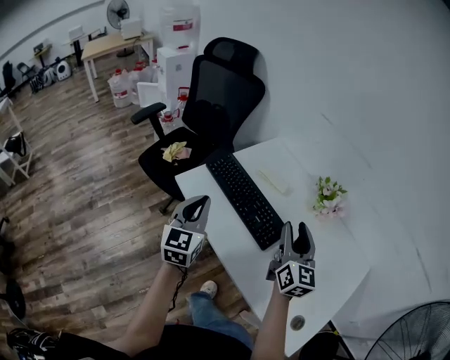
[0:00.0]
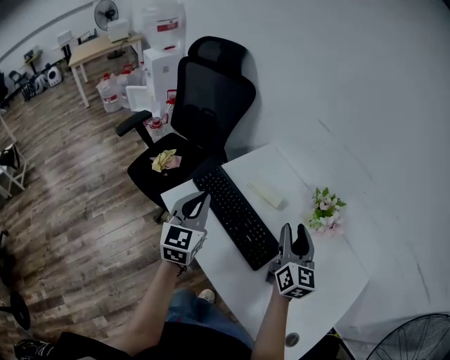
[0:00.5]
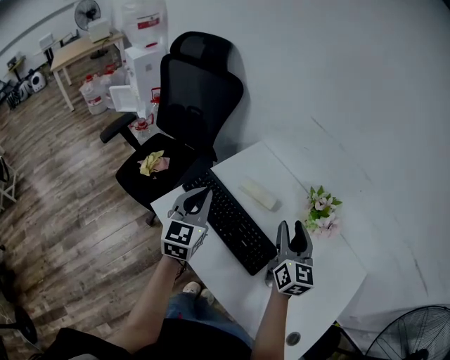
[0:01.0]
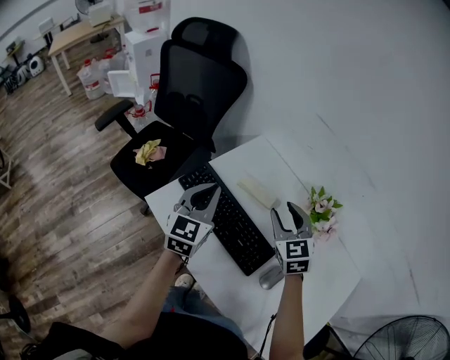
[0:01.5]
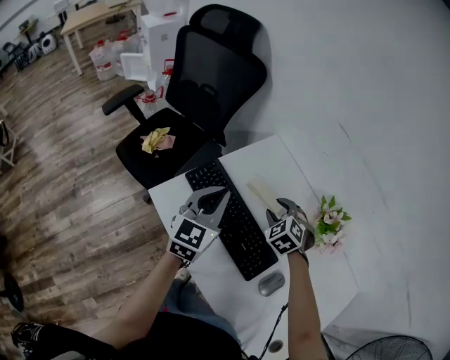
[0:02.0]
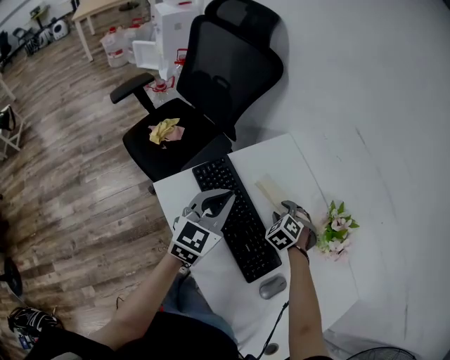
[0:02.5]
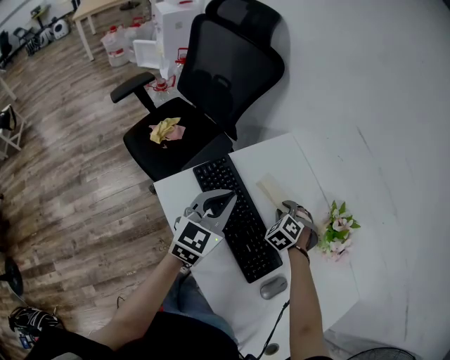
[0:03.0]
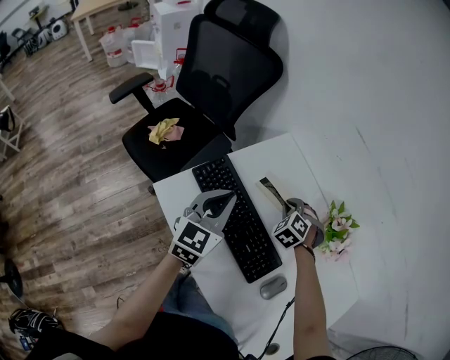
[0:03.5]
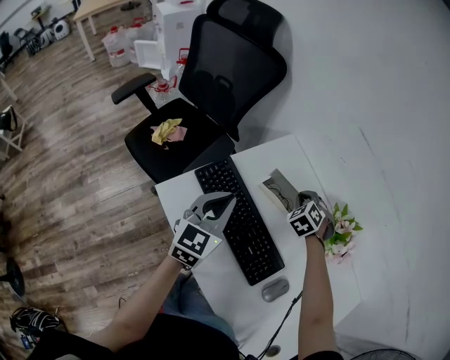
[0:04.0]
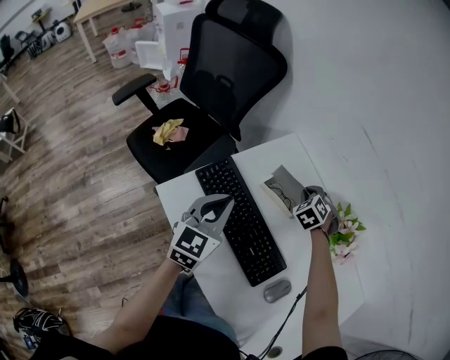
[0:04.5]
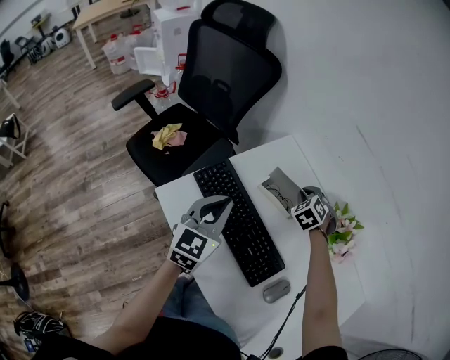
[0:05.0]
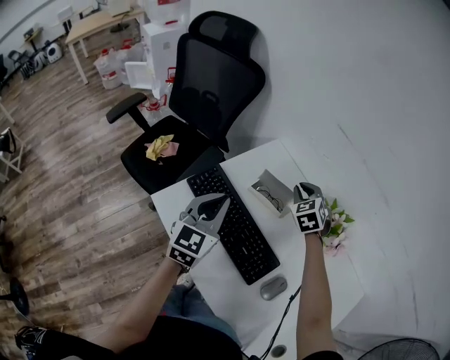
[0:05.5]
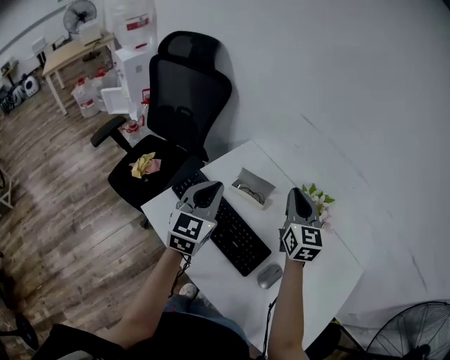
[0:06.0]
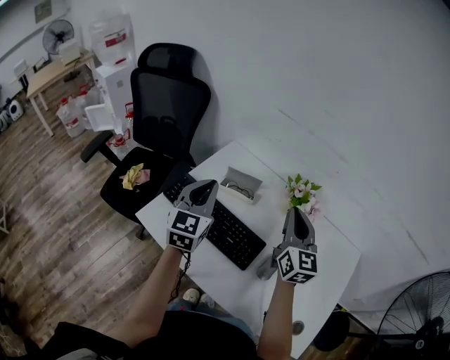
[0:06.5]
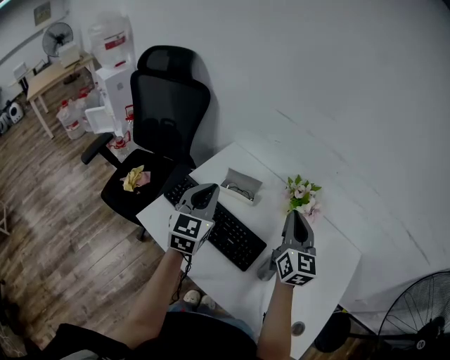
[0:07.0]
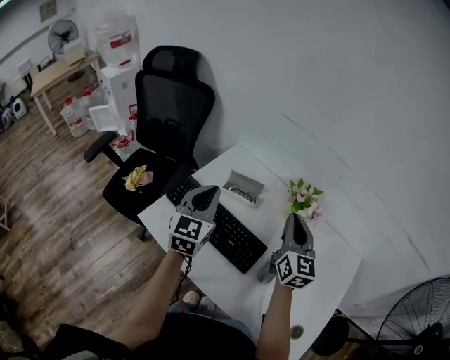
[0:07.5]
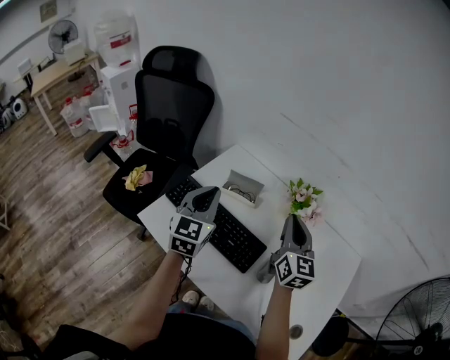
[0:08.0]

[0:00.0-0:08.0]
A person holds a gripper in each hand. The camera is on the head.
0:00.0 to 0:02.0: The left gripper shifts about 20 cm forward; the right gripper goes some 30 cm forward and downward, and points its fingers roughly 50 degrees further downward.
0:02.0 to 0:04.0: The right gripper moves forward, about 10 cm, and closes up.
0:04.0 to 0:06.0: The left gripper moves upward, about 10 cm. Meanwhile the right gripper goes roughly 25 cm upward and backward, and tips its fingers upward by about 50 degrees.
0:06.0 to 0:08.0: The right gripper shifts roughly 10 cm backward and to the right.

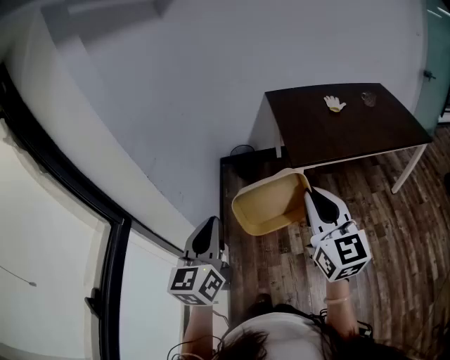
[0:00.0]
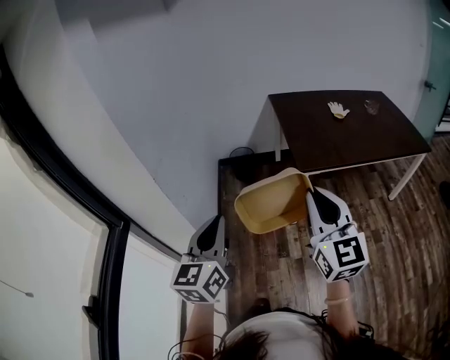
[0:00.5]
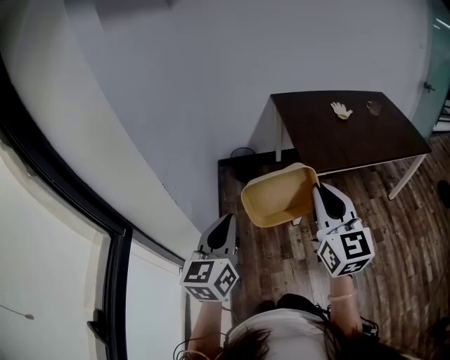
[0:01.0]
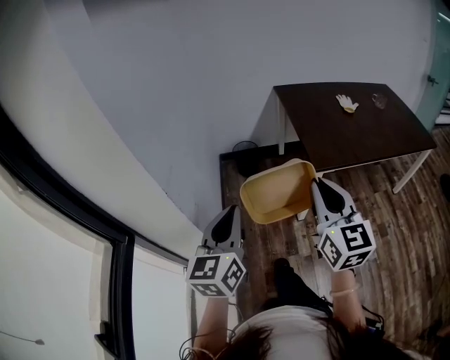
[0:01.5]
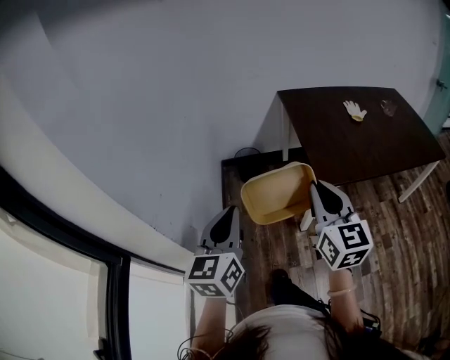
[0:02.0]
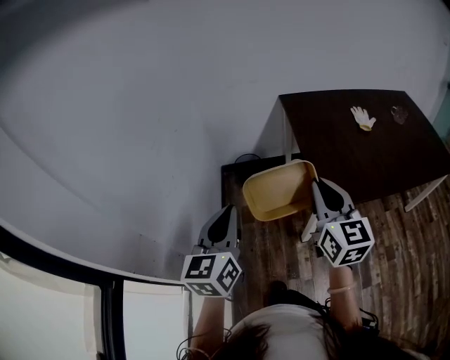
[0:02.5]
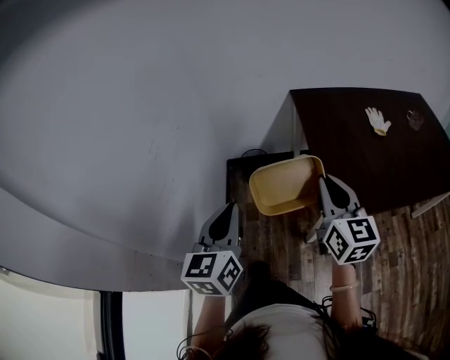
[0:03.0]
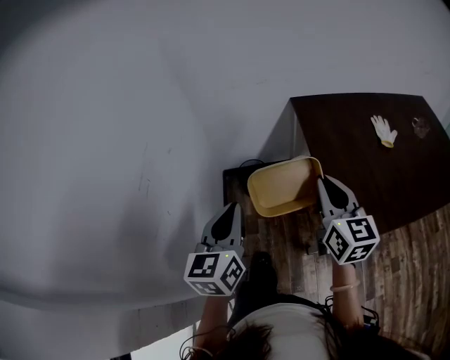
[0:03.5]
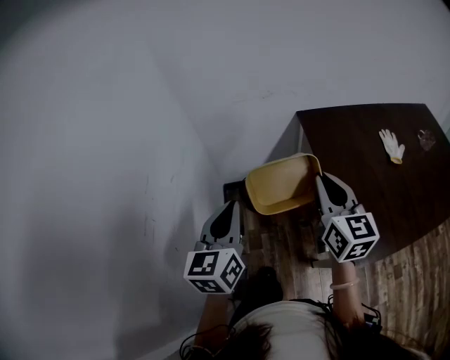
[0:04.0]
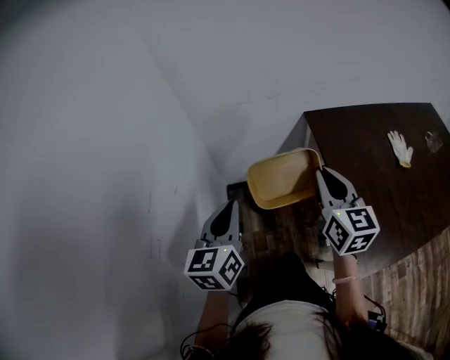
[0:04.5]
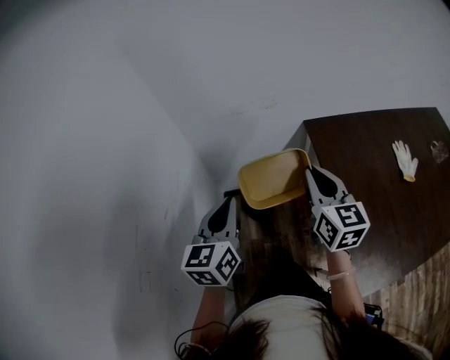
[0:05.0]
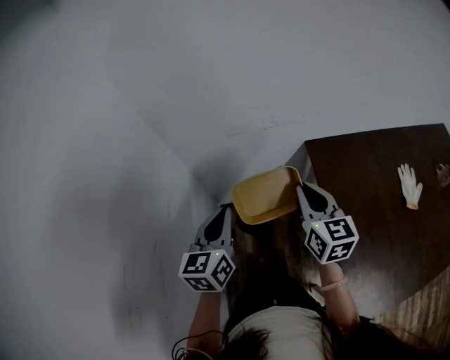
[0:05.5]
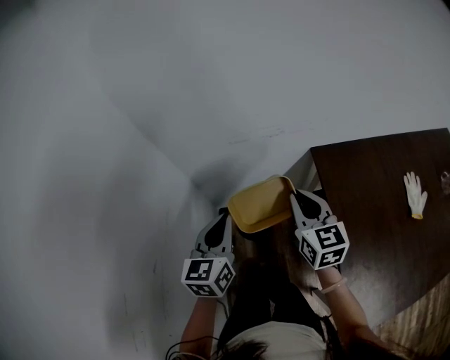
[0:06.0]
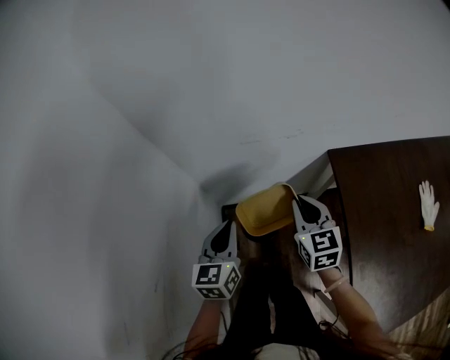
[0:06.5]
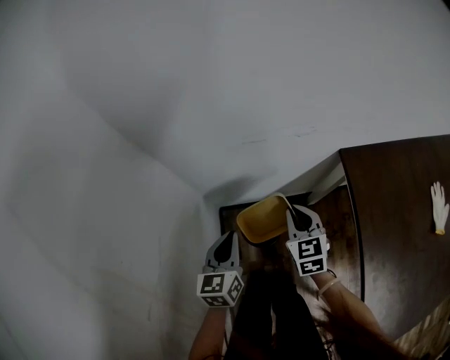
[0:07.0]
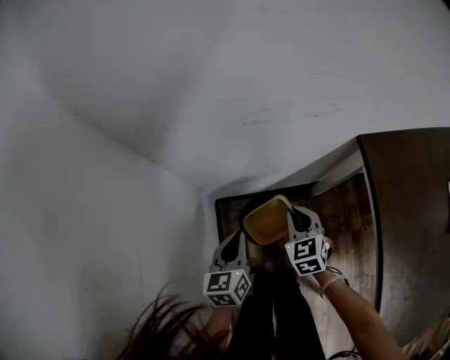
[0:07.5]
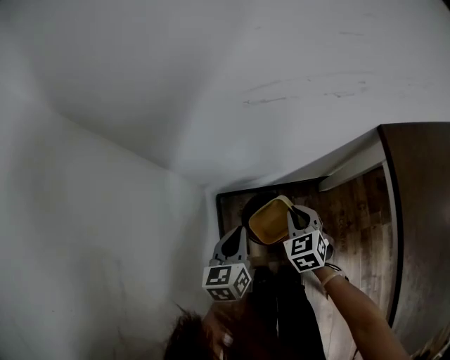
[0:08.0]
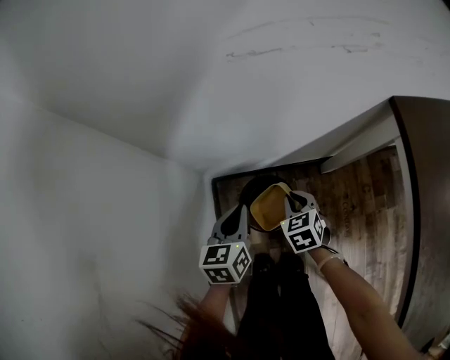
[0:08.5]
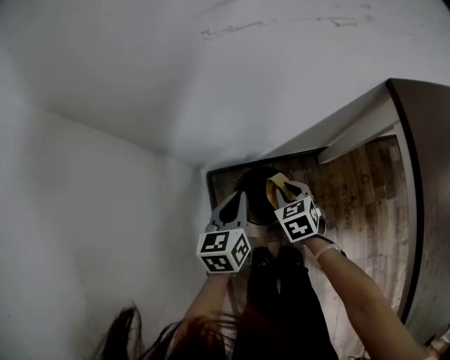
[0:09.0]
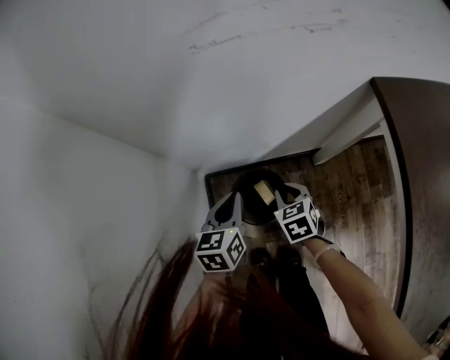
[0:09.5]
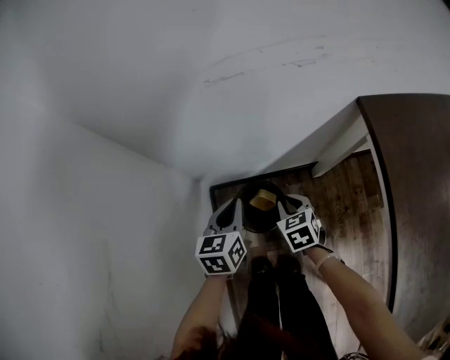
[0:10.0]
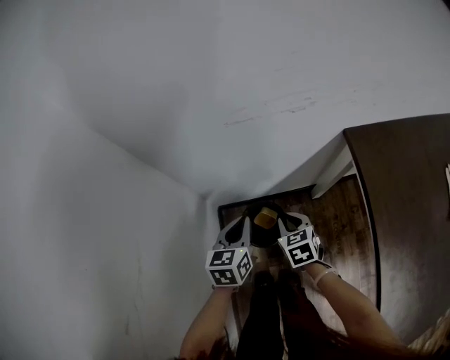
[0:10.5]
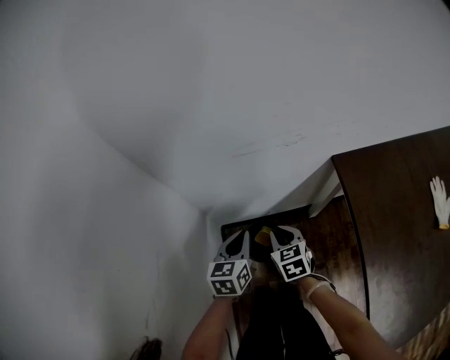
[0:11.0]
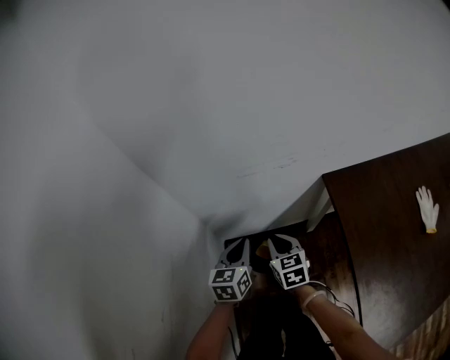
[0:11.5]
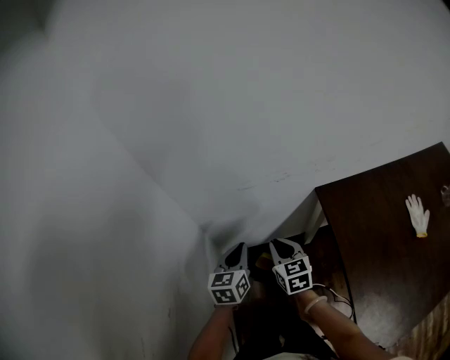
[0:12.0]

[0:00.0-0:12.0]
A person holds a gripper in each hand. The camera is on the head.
0:00.0 to 0:02.0: The right gripper travels forward and to the left by roughly 25 cm. Meanwhile the left gripper moves forward, roughly 25 cm.
0:02.0 to 0:04.0: The pair of grippers is taken forward, about 50 cm.
0:04.0 to 0:06.0: Both grippers travel together forward, about 35 cm.
0:06.0 to 0:08.0: Both grippers travel together downward, about 40 cm. The right gripper tilts its fingers about 30 degrees downward.
0:08.0 to 0:10.0: The right gripper reaches about 10 cm downward, then returns.
0:10.0 to 0:12.0: Both grippers travel together upward, about 35 cm. The right gripper turns by roughly 30 degrees.

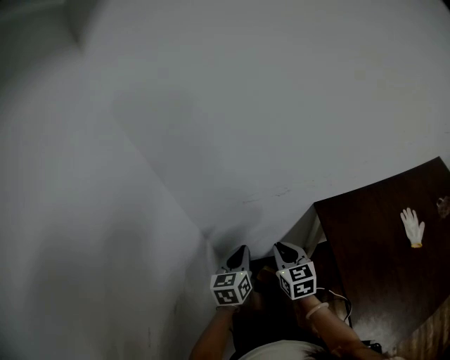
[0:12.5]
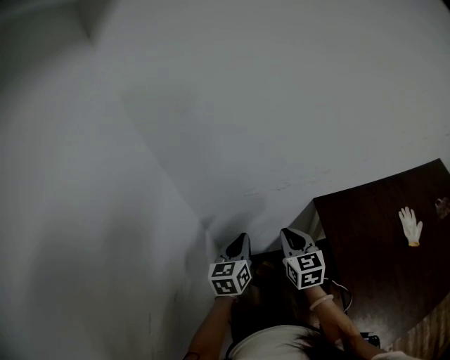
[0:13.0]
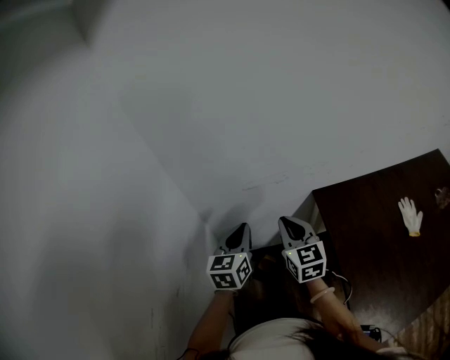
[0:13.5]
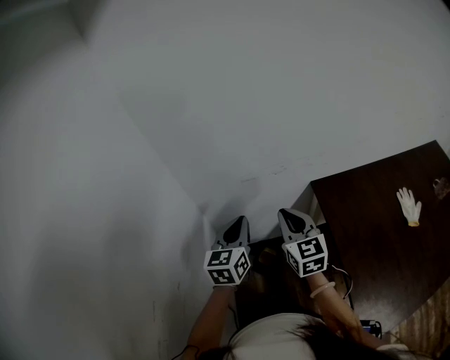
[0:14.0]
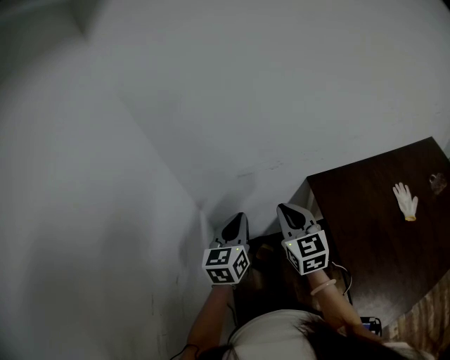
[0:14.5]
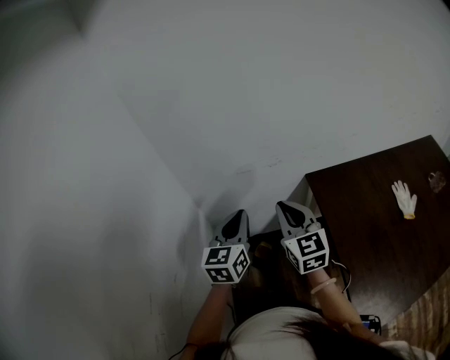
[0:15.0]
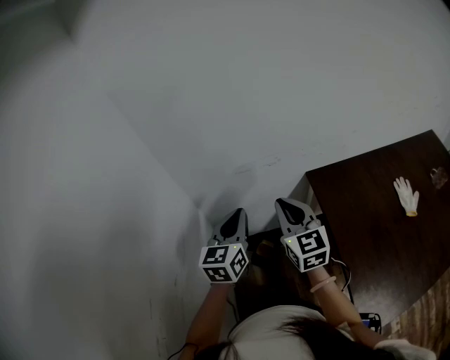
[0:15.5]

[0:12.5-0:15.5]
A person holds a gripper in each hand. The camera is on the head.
0:12.5 to 0:14.0: The two grippers go about 10 cm upward.
0:14.0 to 0:15.5: The grippers move only a little.

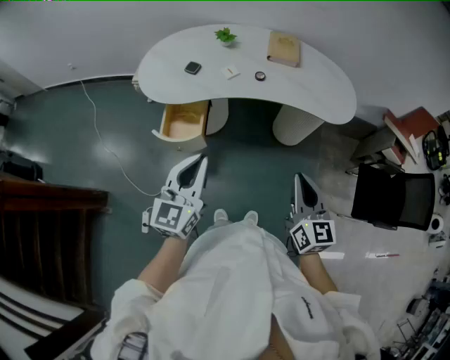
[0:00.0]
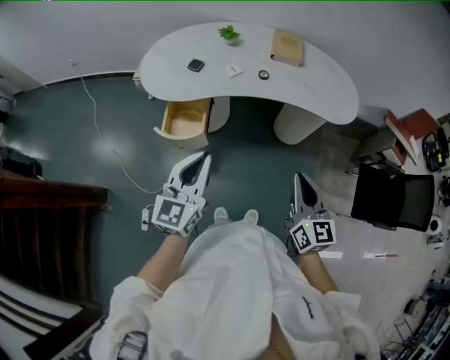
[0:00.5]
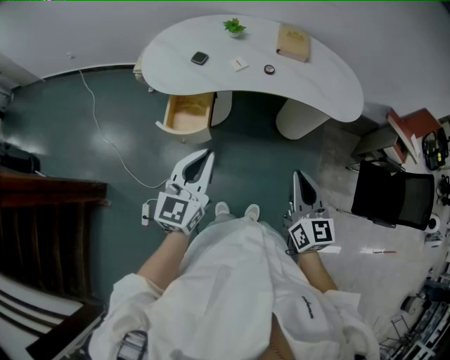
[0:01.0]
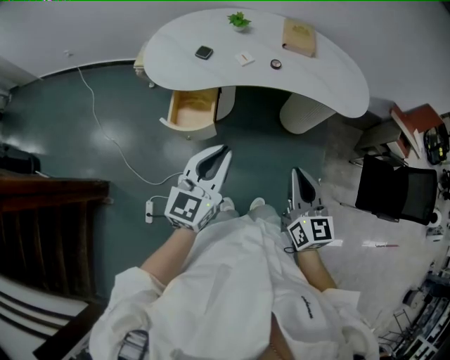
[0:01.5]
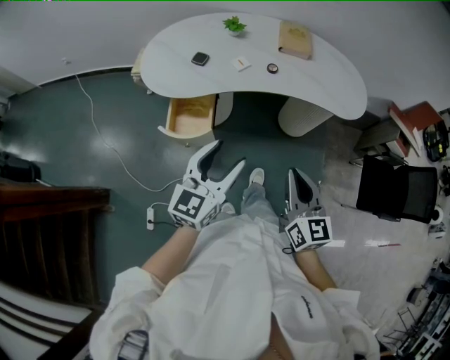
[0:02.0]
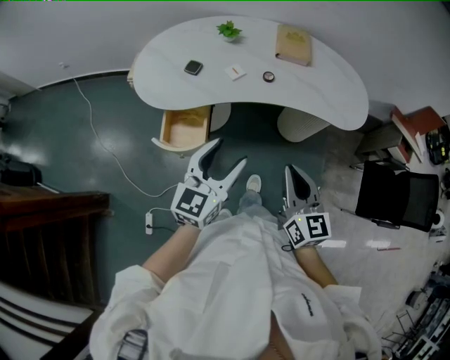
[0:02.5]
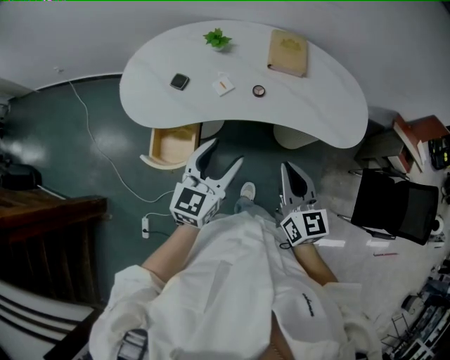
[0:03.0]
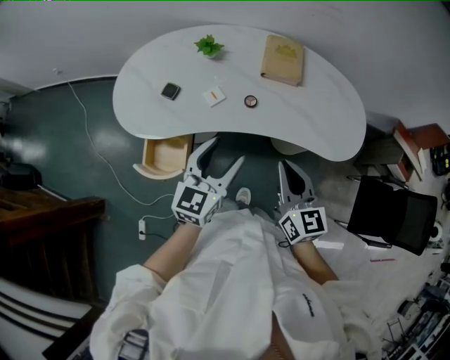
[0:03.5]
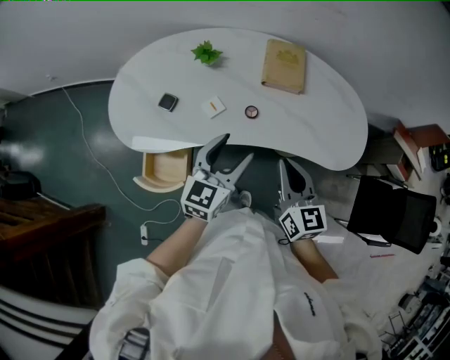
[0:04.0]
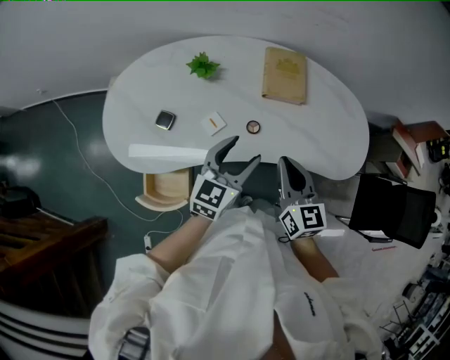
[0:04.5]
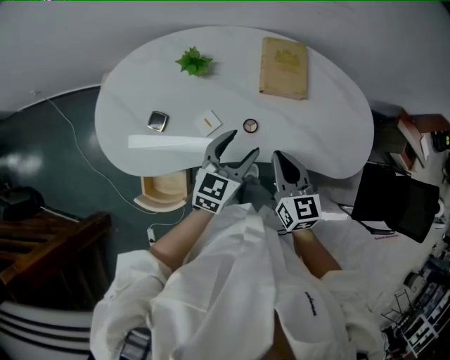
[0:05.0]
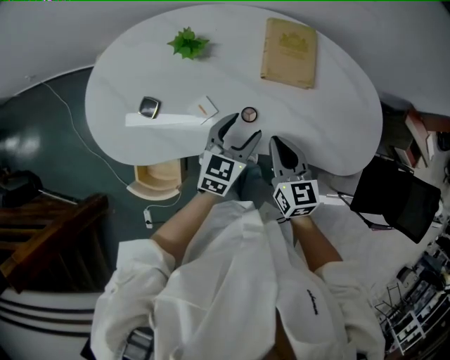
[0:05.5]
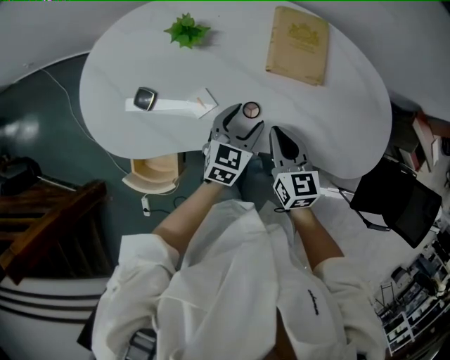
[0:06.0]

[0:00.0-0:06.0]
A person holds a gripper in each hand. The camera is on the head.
0:00.0 to 0:02.0: The left gripper opens its fingers. Meanwhile the right gripper moves to the left, some 10 cm.
0:02.0 to 0:04.0: The grippers both shift forward by approximately 35 cm.
0:04.0 to 0:06.0: The right gripper shifts about 20 cm forward and downward; the left gripper goes roughly 25 cm downward and forward, and turns by about 20 degrees.
